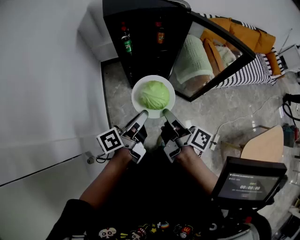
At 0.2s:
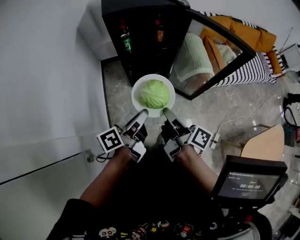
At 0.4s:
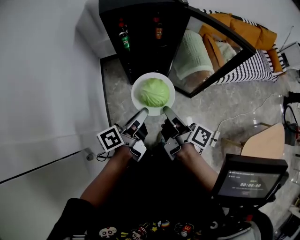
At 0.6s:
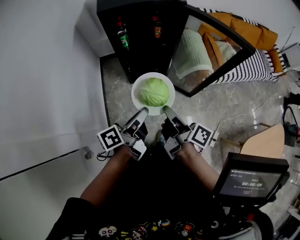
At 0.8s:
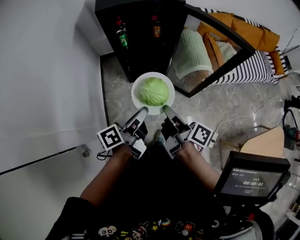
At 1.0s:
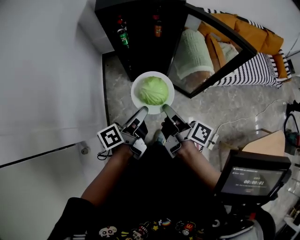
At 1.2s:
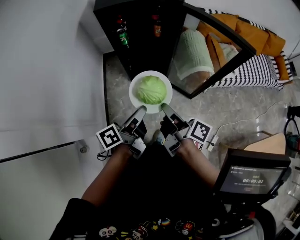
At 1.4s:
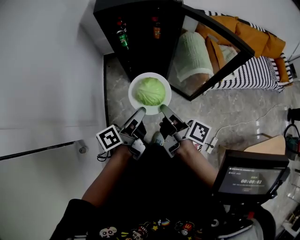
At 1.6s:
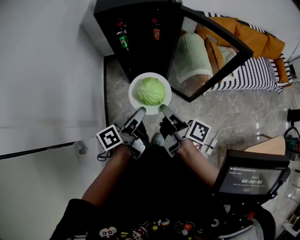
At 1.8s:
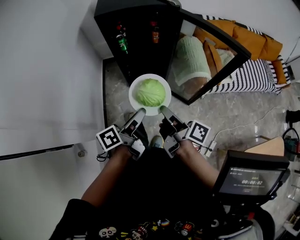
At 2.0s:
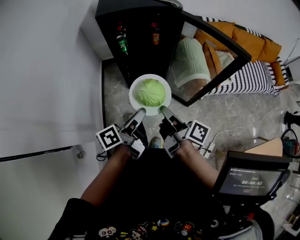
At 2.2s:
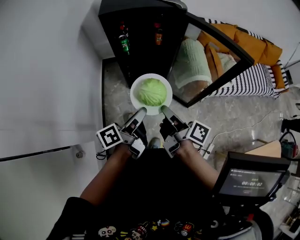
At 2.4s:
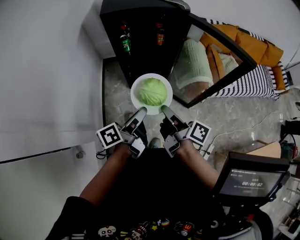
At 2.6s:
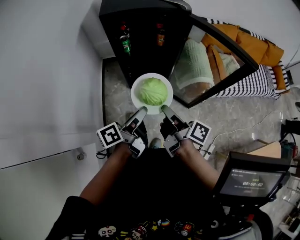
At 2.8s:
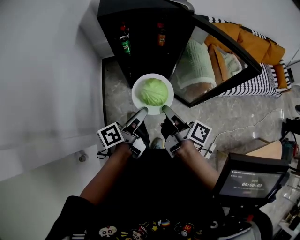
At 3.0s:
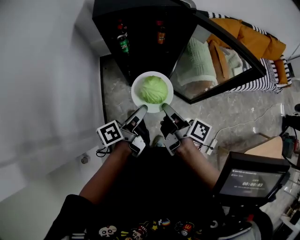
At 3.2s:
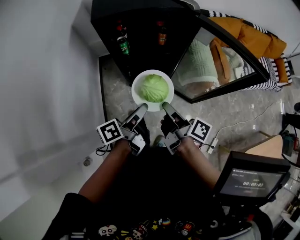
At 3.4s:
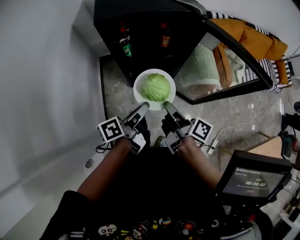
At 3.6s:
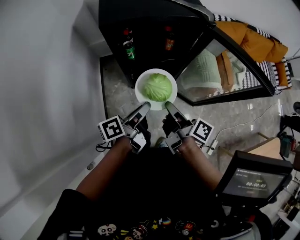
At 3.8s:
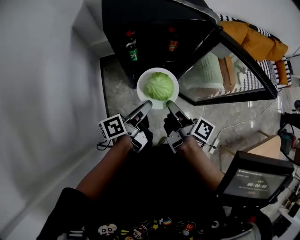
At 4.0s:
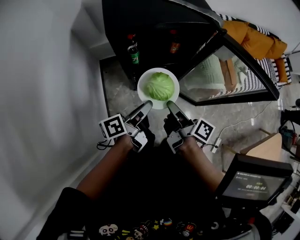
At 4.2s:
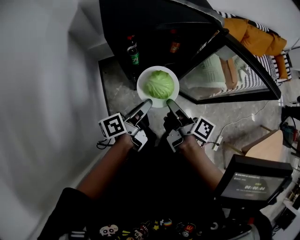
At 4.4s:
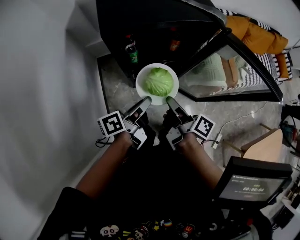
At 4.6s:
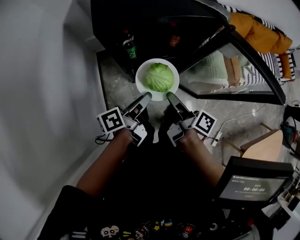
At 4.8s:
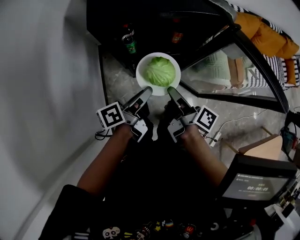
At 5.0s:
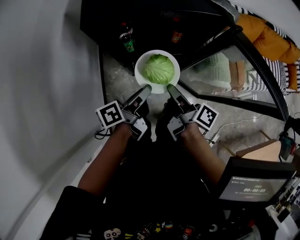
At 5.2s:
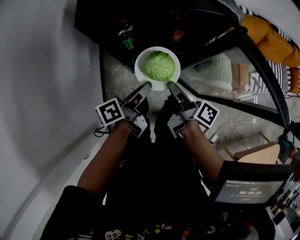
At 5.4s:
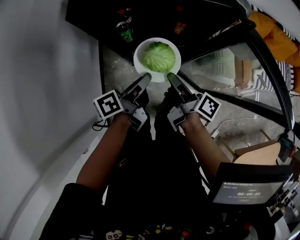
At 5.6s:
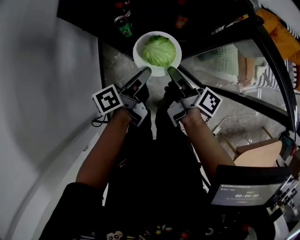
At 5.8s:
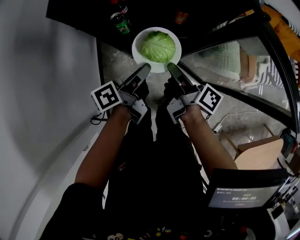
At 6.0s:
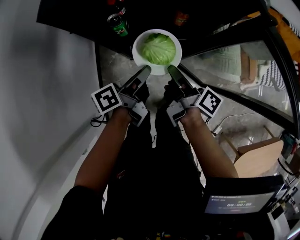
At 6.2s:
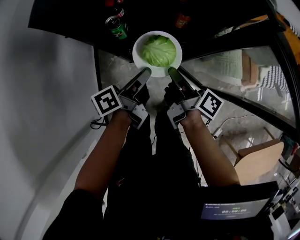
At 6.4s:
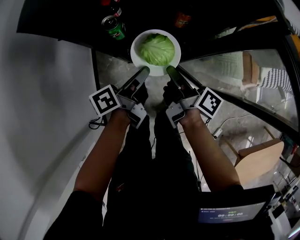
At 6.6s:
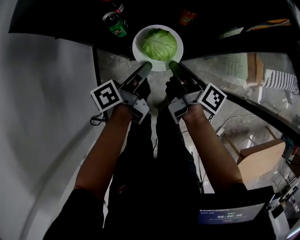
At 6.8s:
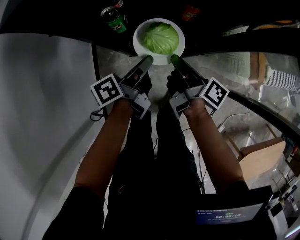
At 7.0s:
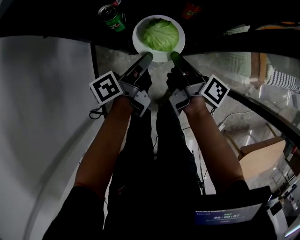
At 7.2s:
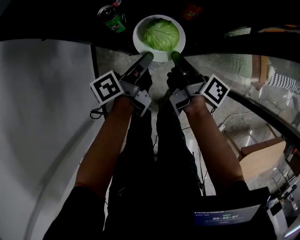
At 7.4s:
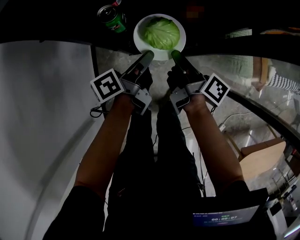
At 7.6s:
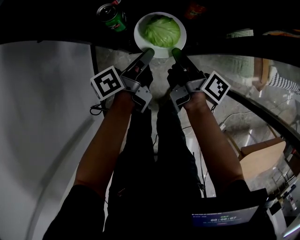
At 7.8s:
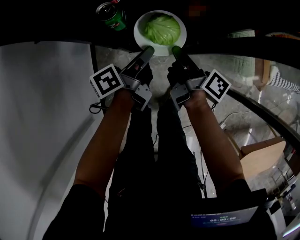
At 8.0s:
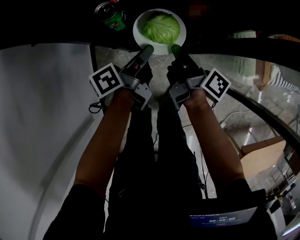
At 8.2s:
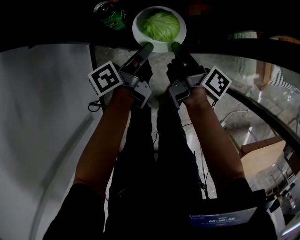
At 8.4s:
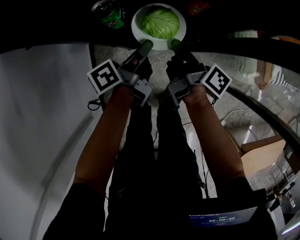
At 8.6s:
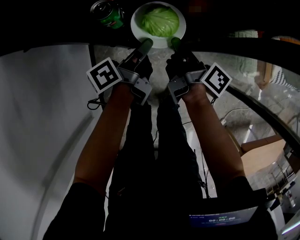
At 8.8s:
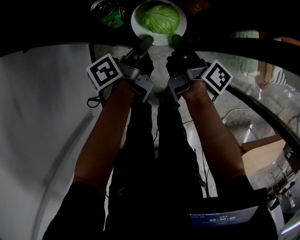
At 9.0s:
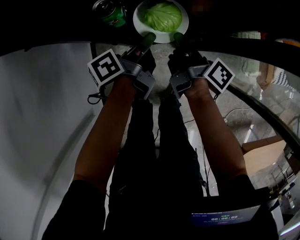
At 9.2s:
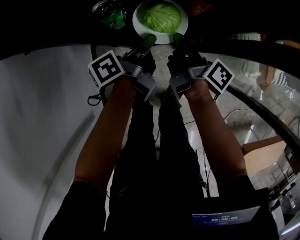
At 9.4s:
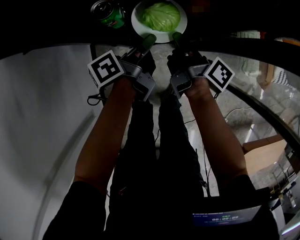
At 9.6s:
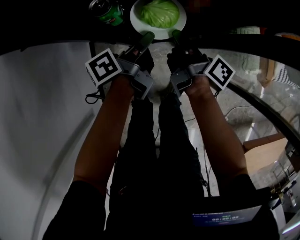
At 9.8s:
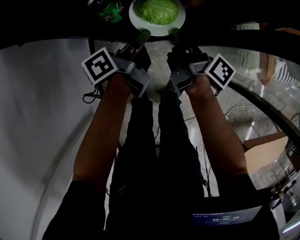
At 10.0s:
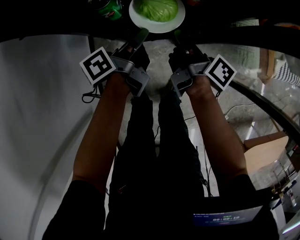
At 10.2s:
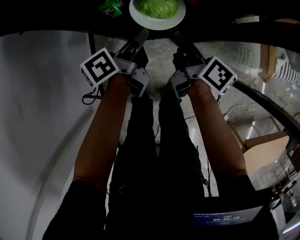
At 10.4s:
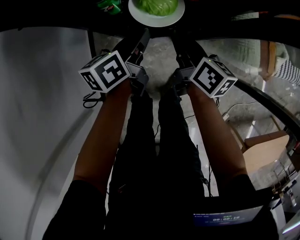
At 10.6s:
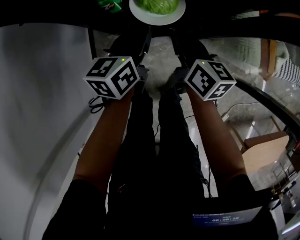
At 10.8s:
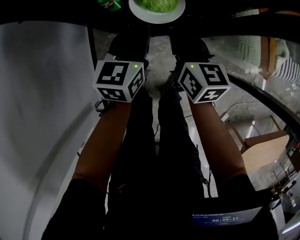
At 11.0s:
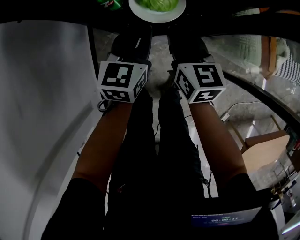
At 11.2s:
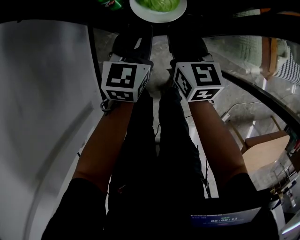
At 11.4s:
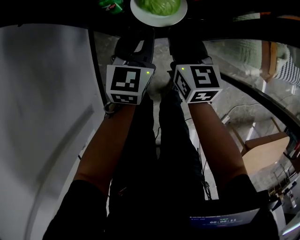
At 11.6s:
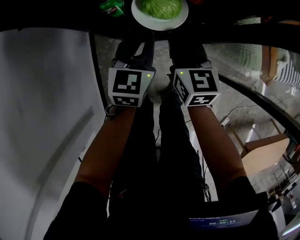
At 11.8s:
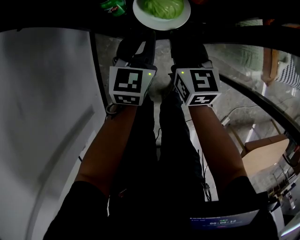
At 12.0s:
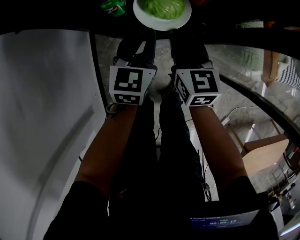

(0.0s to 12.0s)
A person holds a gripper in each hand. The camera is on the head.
0.0s - 1.6s: The grippers make only small movements.
1.6s - 3.0s: Neither gripper changes place.
3.0s - 6.0s: There are only small adjustments of the grippers.
6.0s - 7.6s: Both grippers stay about where they are.
7.6s - 9.0s: Neither gripper changes place.
9.0s - 10.4s: The right gripper turns by roughly 40 degrees. Meanwhile the left gripper rotates roughly 30 degrees.
10.4s - 12.0s: The right gripper rotates roughly 40 degrees, while the left gripper rolls clockwise, seen from behind, by approximately 50 degrees.

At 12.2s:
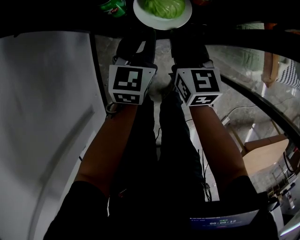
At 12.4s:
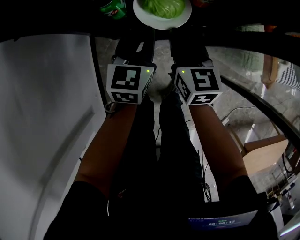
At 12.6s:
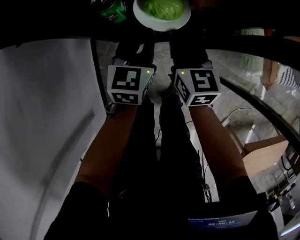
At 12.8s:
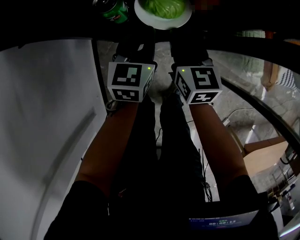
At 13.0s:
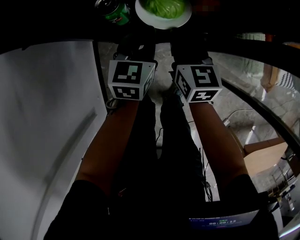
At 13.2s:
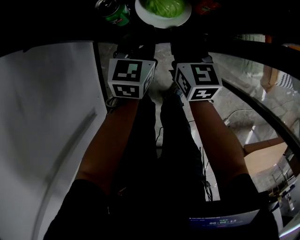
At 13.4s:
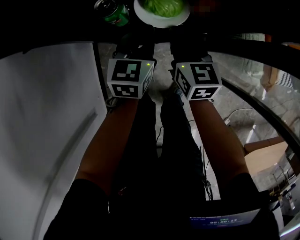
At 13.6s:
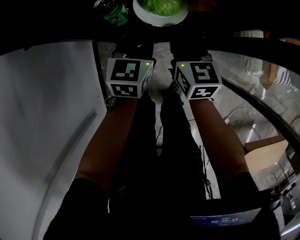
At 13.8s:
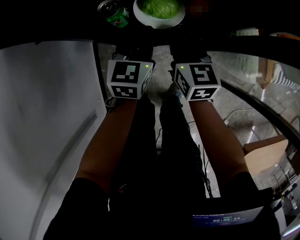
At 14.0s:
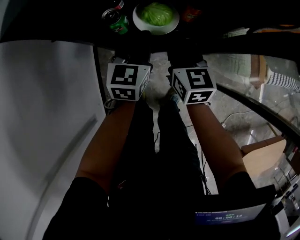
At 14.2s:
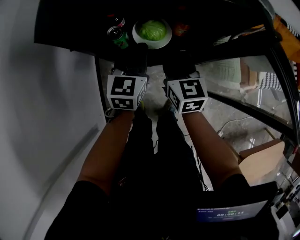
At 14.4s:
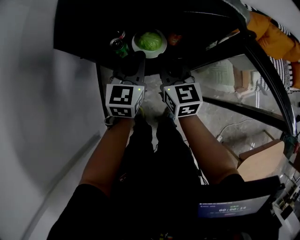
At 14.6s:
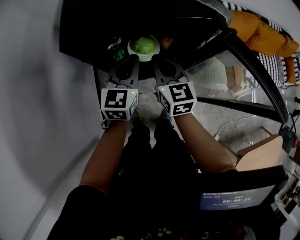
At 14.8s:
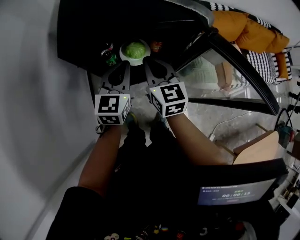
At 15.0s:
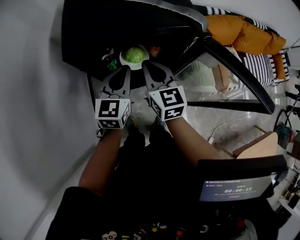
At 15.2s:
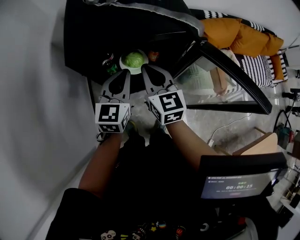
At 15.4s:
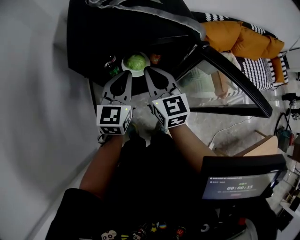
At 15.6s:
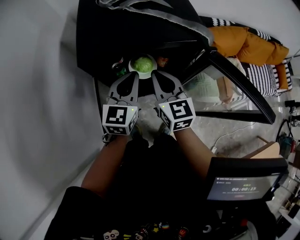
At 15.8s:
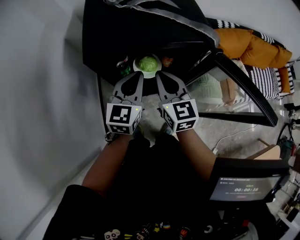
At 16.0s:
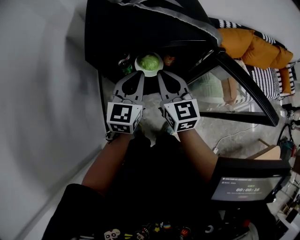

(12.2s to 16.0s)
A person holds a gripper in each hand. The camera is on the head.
12.2s - 13.4s: The grippers stay close to where they were, moving slightly.
13.4s - 14.8s: Both grippers travel together upward, approximately 25 cm.
14.8s - 16.0s: The grippers stay close to where they were, moving slightly.

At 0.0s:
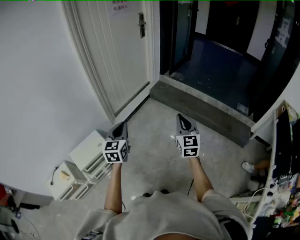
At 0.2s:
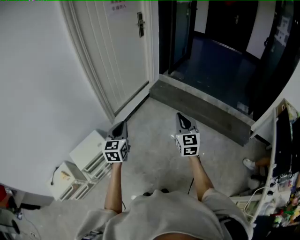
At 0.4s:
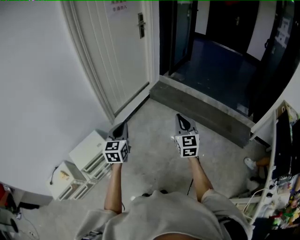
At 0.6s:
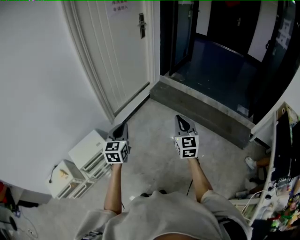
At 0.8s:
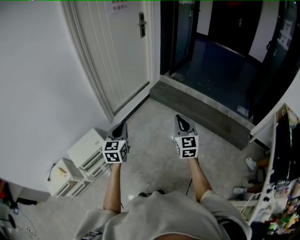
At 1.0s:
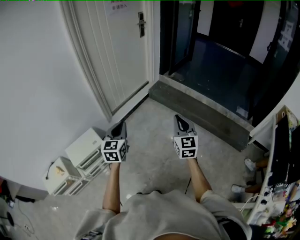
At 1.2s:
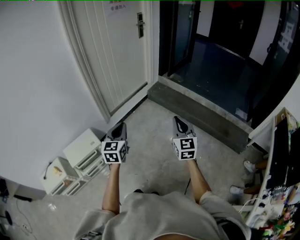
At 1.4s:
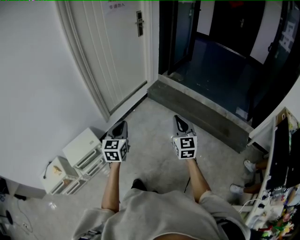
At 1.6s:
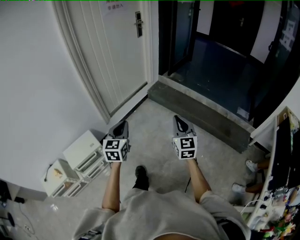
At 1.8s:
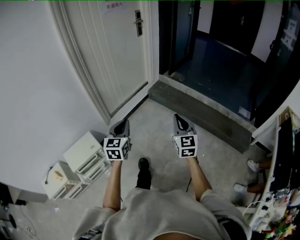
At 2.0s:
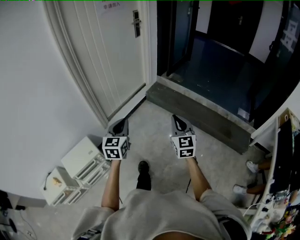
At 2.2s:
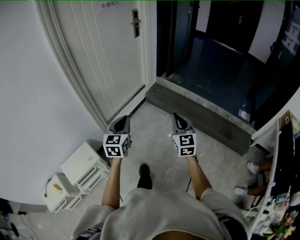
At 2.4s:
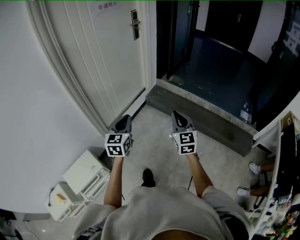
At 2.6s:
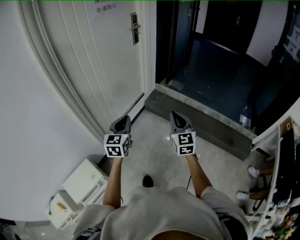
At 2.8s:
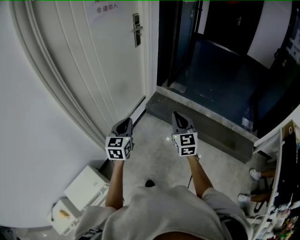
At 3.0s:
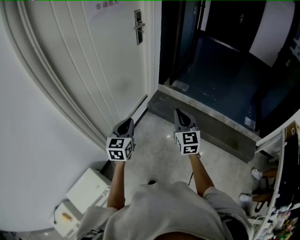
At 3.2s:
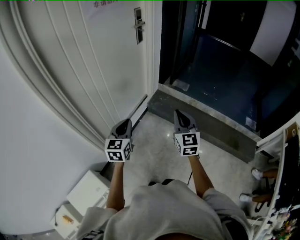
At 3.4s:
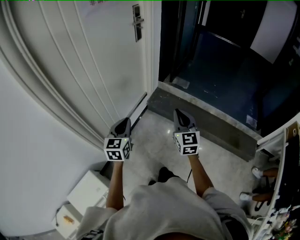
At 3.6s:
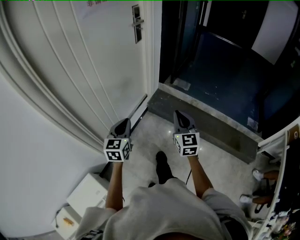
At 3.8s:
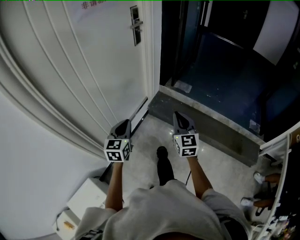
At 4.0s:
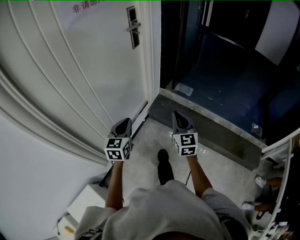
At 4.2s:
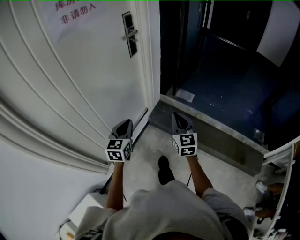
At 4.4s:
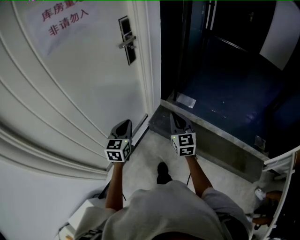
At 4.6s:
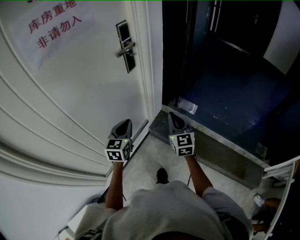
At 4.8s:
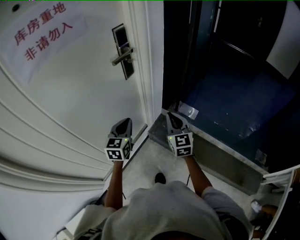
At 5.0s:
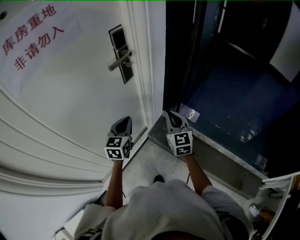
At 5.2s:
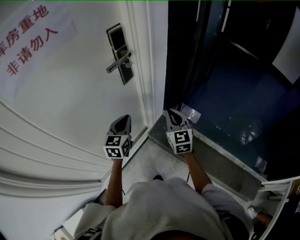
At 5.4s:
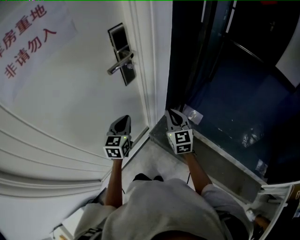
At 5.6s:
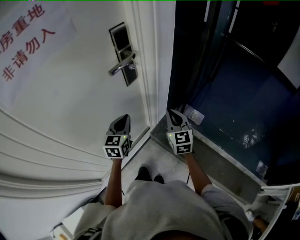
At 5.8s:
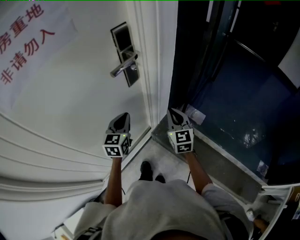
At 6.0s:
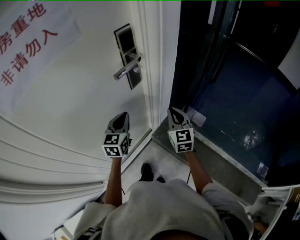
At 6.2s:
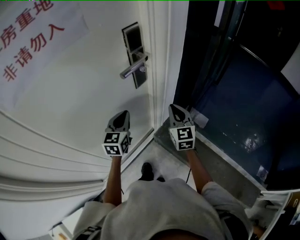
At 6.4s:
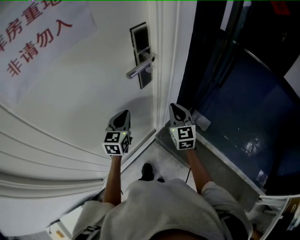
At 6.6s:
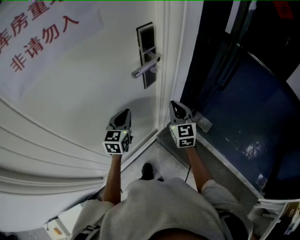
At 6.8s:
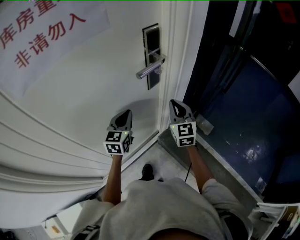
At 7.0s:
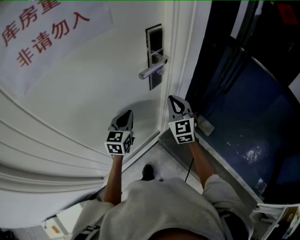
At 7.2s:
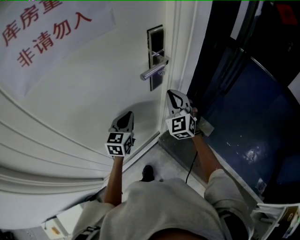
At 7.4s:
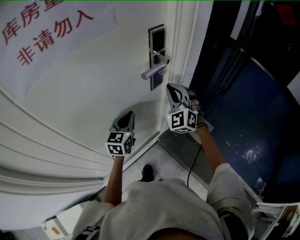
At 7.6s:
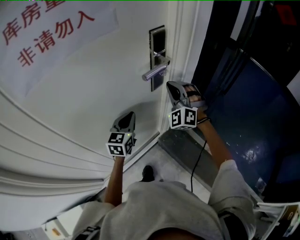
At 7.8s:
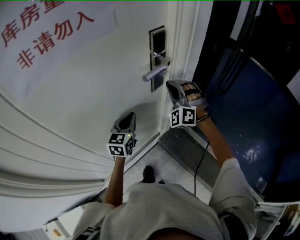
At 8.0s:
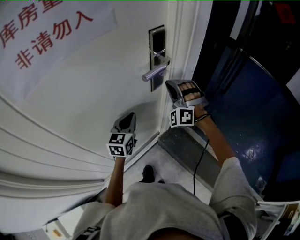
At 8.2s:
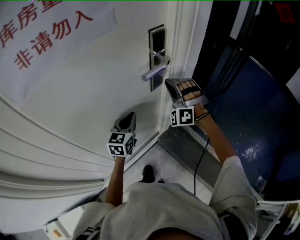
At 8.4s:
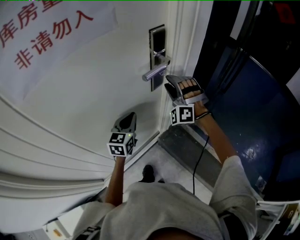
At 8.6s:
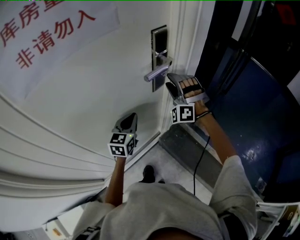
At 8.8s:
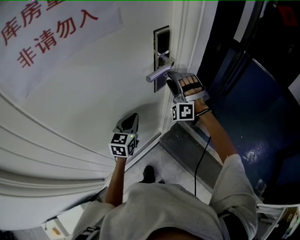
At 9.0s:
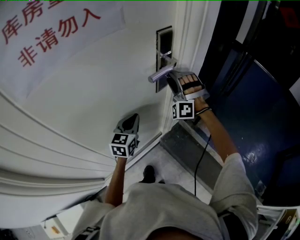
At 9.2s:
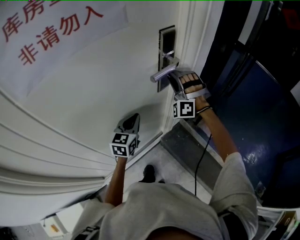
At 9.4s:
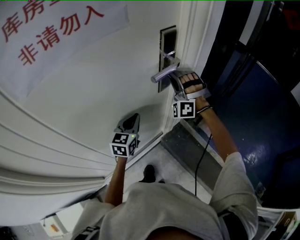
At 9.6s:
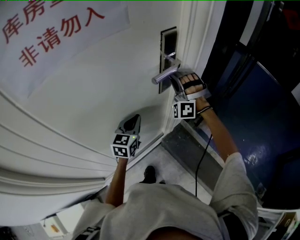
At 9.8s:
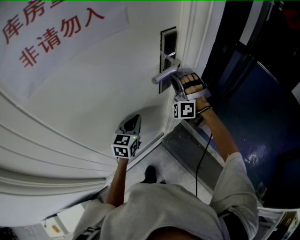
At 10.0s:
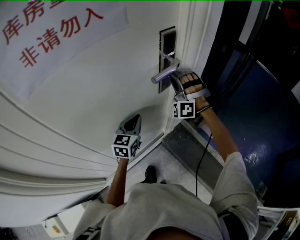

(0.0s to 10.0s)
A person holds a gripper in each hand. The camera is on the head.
0.0s - 1.4s: The grippers both shift to the right by some 10 cm.
1.4s - 2.8s: The two grippers go some 40 cm forward.
2.8s - 4.2s: Both grippers travel together forward, approximately 35 cm.
4.2s - 5.8s: Both grippers travel together forward, roughly 35 cm.
5.8s - 7.2s: The right gripper moves to the left, upward and forward, about 15 cm, and turns by about 30 degrees, while the left gripper shifts approximately 10 cm to the left.
7.2s - 8.6s: The right gripper moves forward, roughly 5 cm, rolls counterclockwise, seen from behind, by about 50 degrees, and opens up.
8.6s - 10.0s: The right gripper closes.
